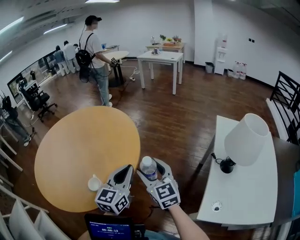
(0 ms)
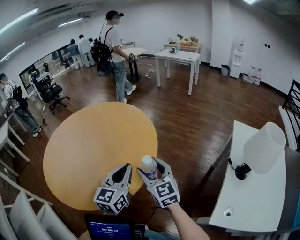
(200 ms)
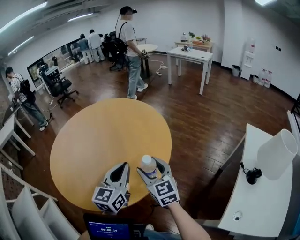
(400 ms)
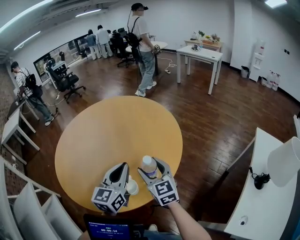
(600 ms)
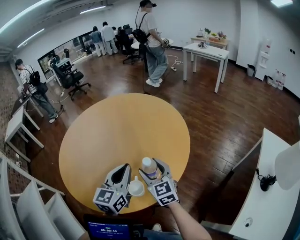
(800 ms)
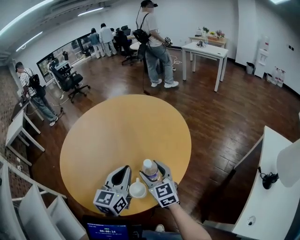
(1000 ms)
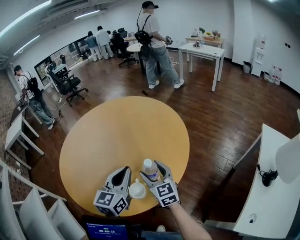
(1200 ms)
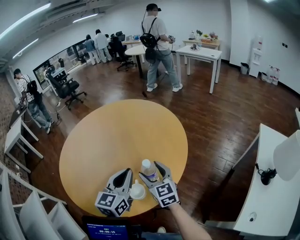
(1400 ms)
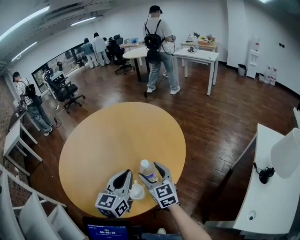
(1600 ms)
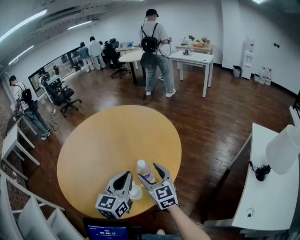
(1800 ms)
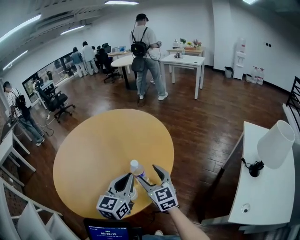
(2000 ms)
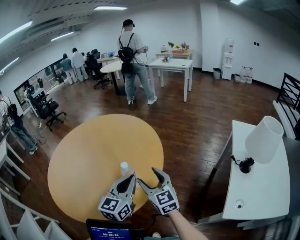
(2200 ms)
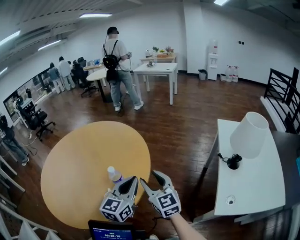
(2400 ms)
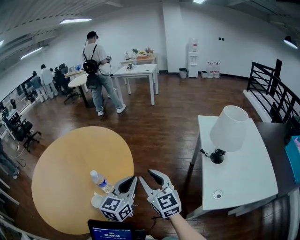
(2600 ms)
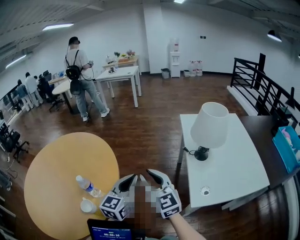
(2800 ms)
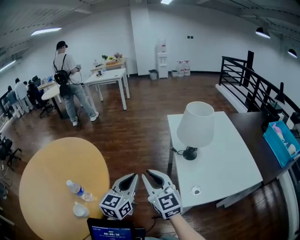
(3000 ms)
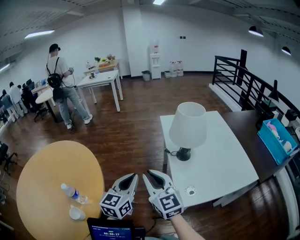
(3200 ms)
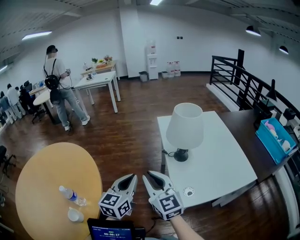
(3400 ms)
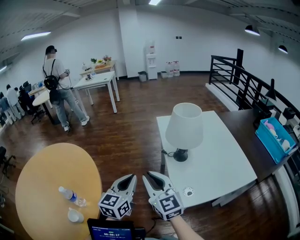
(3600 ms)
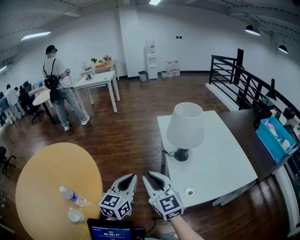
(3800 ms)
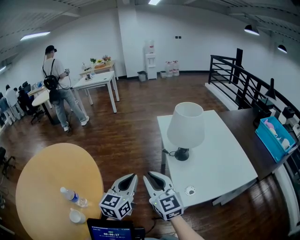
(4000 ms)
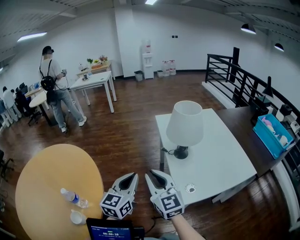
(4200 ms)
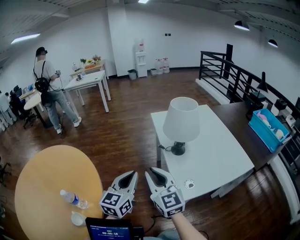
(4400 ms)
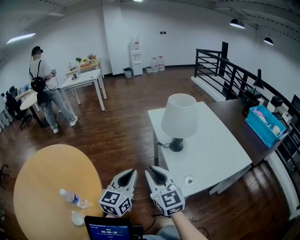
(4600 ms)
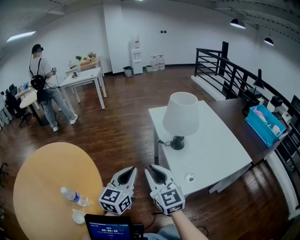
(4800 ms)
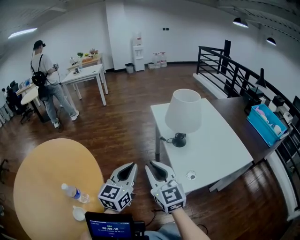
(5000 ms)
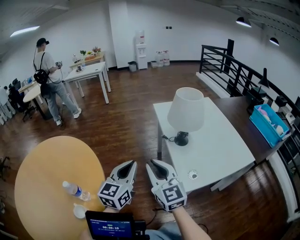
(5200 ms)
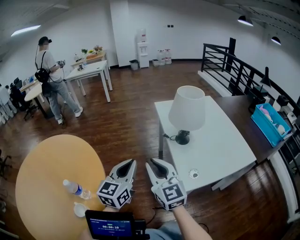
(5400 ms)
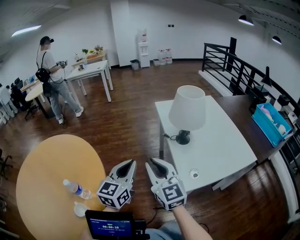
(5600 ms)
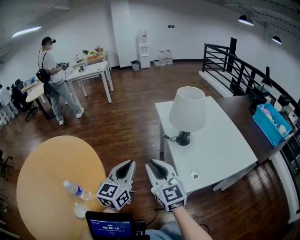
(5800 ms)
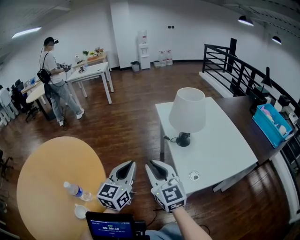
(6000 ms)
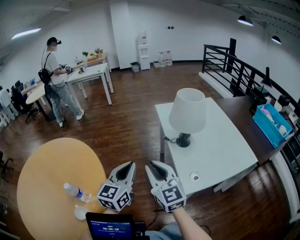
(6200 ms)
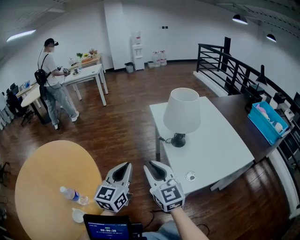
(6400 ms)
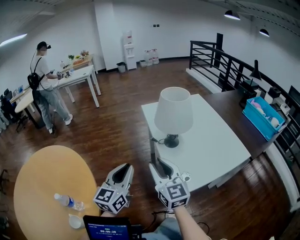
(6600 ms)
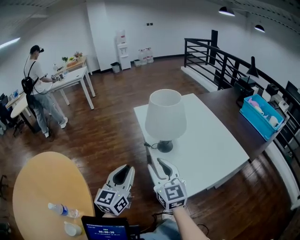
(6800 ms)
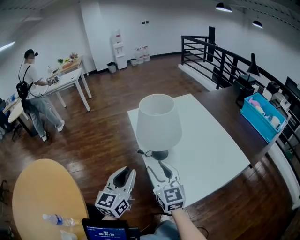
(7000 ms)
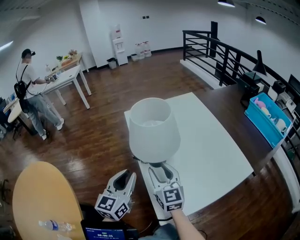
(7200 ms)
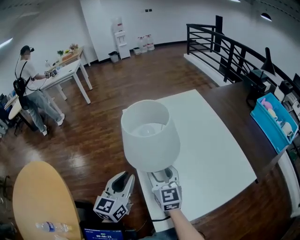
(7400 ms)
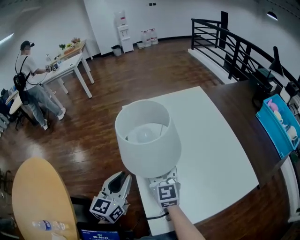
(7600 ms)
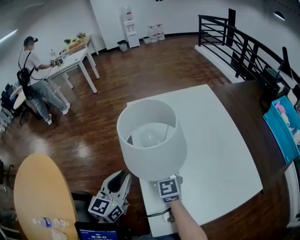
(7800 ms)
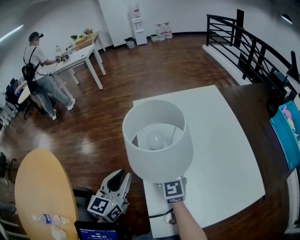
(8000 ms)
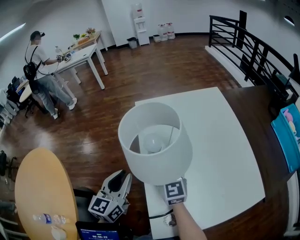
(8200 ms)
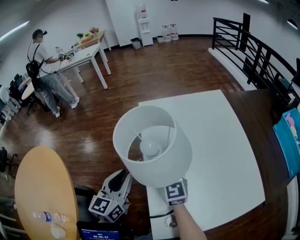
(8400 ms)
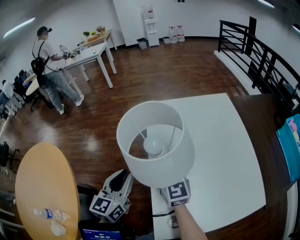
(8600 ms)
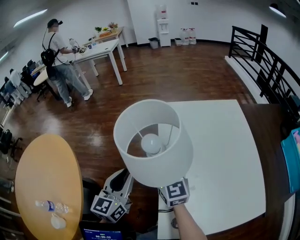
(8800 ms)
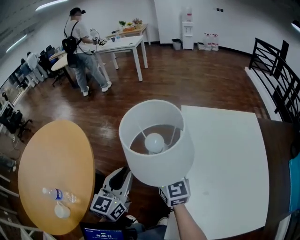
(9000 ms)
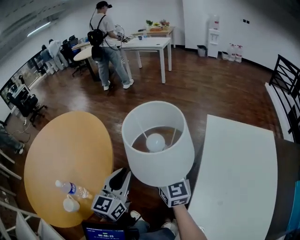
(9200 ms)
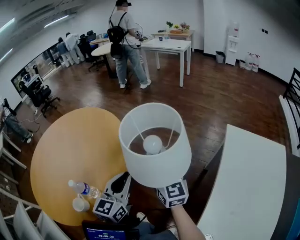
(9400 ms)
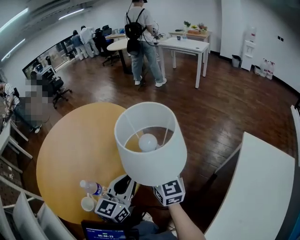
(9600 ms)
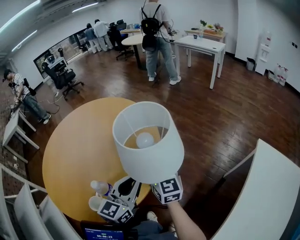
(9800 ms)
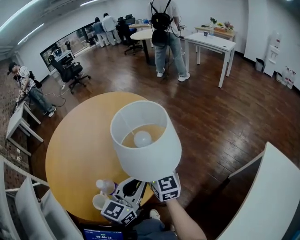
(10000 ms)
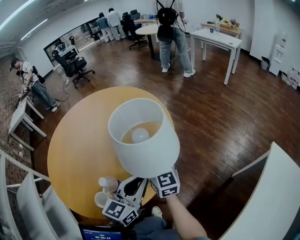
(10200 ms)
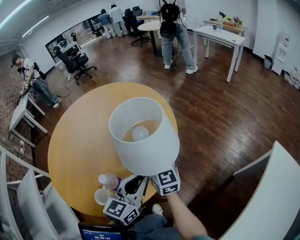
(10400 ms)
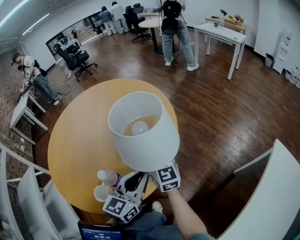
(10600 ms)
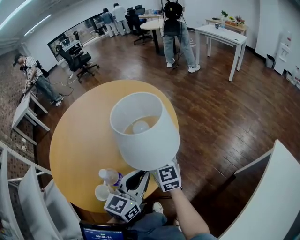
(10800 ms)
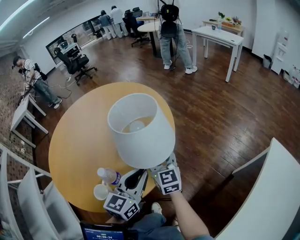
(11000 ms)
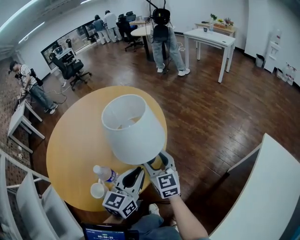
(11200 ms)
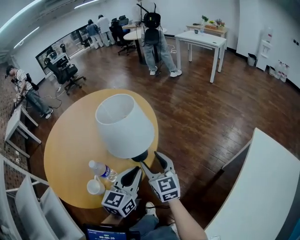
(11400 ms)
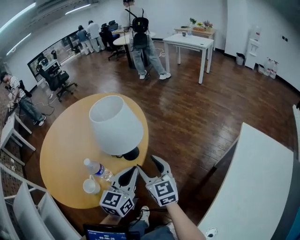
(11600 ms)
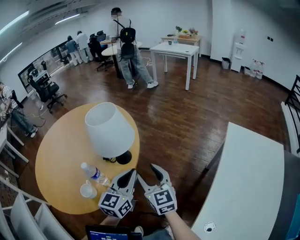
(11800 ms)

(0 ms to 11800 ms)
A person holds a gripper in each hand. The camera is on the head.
0 ms - 1400 ms: The left gripper goes about 25 cm to the left, while the right gripper is displaced to the left and forward by approximately 25 cm.
1400 ms - 3000 ms: The right gripper ends up some 40 cm from where it was, changes its angle by about 40 degrees, and closes up, while the left gripper moves approximately 40 cm, and swivels roughly 40 degrees.
3000 ms - 6000 ms: The grippers make only small movements.
6000 ms - 7400 ms: Both grippers move forward, to the right and downward, approximately 30 cm. The left gripper opens. The right gripper opens its fingers.
7400 ms - 8800 ms: The left gripper is displaced to the left by approximately 10 cm; the right gripper goes about 10 cm to the left and forward.
8800 ms - 10400 ms: Both grippers are carried some 50 cm. The left gripper swivels approximately 40 degrees. The right gripper rotates roughly 50 degrees.
10400 ms - 11800 ms: The right gripper travels backward and to the right by approximately 25 cm. The left gripper travels to the right, backward and upward by approximately 15 cm.

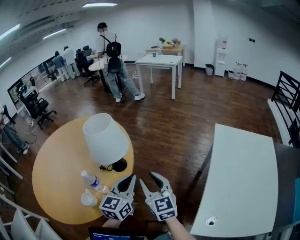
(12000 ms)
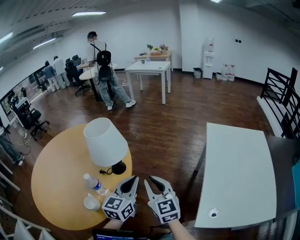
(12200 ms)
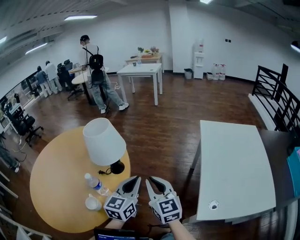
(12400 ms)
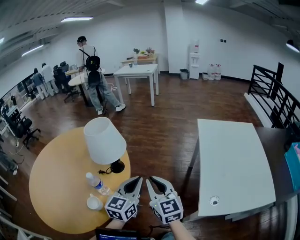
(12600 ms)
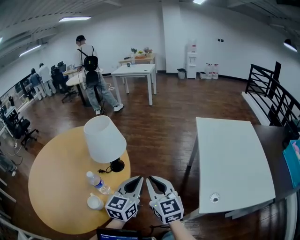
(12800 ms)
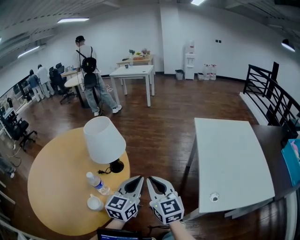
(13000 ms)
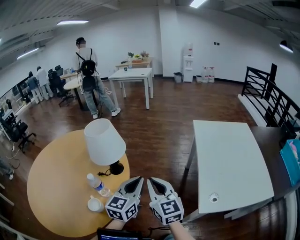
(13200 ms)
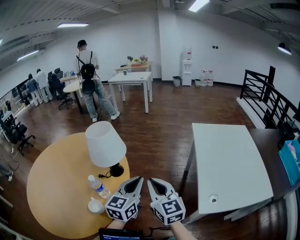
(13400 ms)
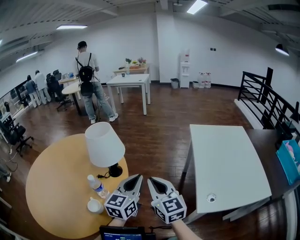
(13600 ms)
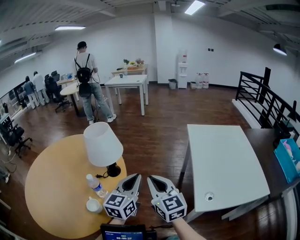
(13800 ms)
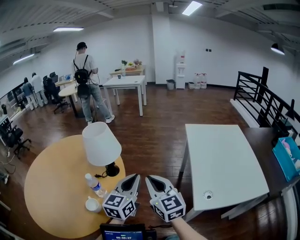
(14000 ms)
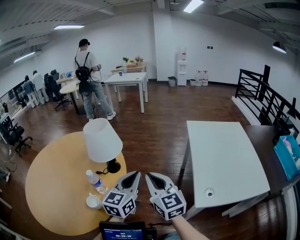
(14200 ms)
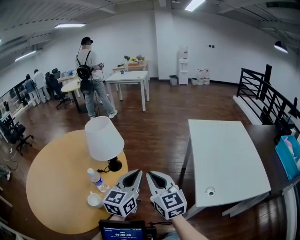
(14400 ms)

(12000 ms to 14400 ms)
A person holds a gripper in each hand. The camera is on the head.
12000 ms - 13200 ms: The left gripper moves backward, about 10 cm, and changes its angle by some 20 degrees. Meanwhile the right gripper goes roughly 10 cm backward and upward, and closes its fingers.
13200 ms - 14400 ms: The grippers stay close to where they were, moving slightly.

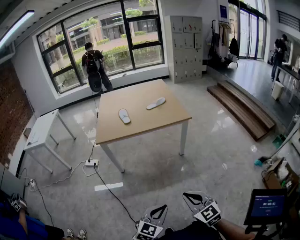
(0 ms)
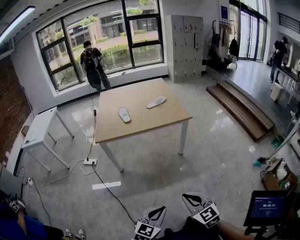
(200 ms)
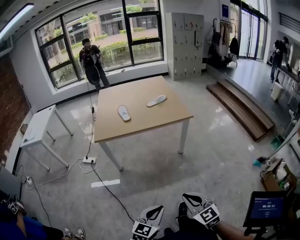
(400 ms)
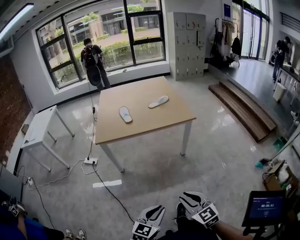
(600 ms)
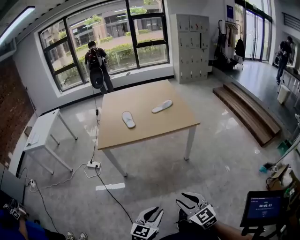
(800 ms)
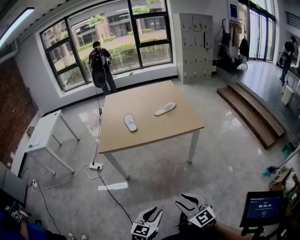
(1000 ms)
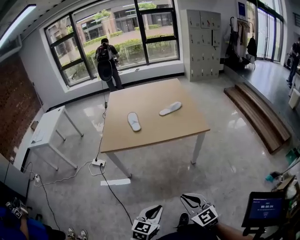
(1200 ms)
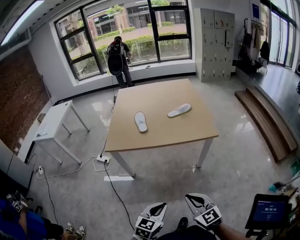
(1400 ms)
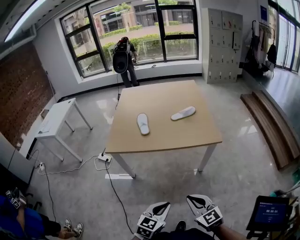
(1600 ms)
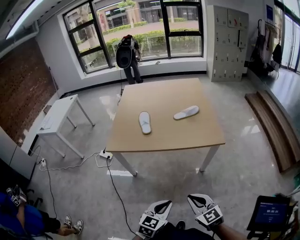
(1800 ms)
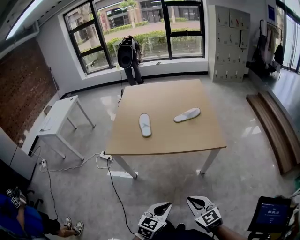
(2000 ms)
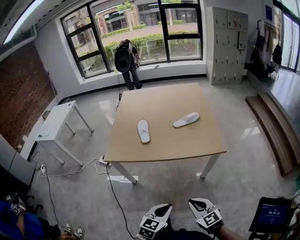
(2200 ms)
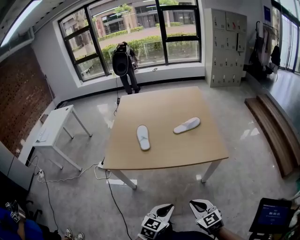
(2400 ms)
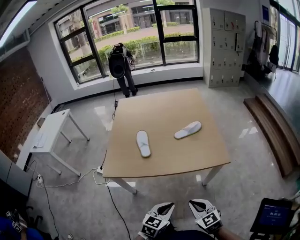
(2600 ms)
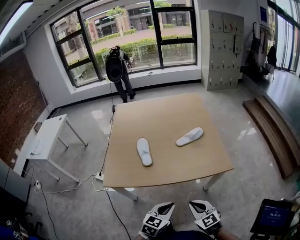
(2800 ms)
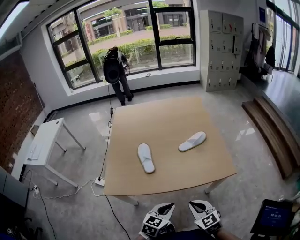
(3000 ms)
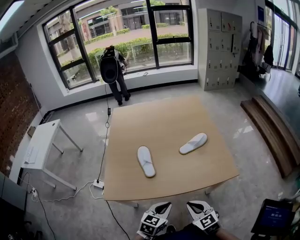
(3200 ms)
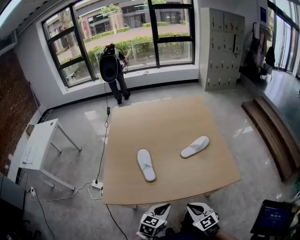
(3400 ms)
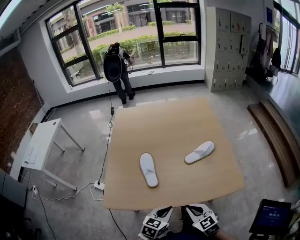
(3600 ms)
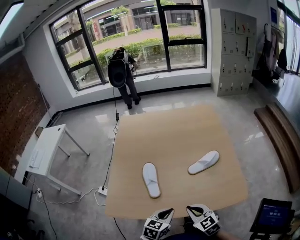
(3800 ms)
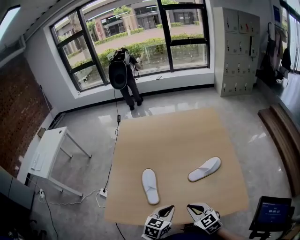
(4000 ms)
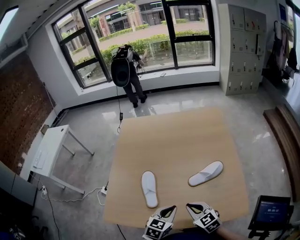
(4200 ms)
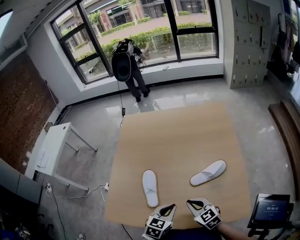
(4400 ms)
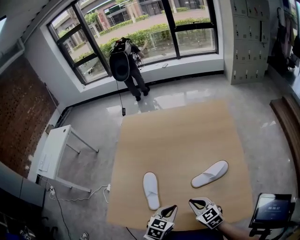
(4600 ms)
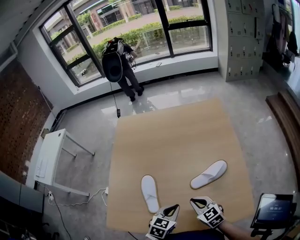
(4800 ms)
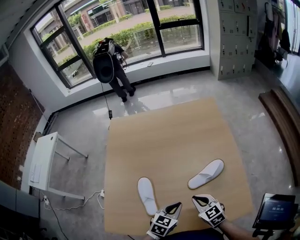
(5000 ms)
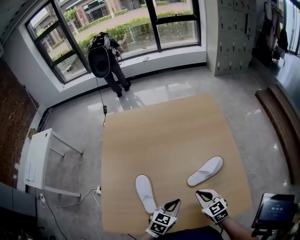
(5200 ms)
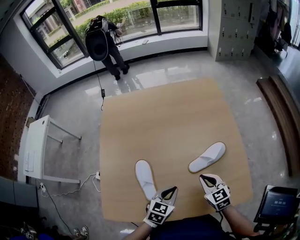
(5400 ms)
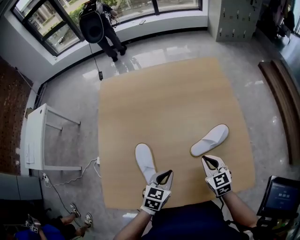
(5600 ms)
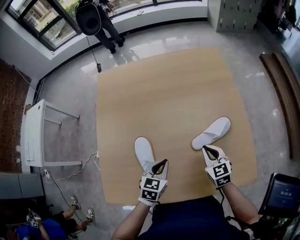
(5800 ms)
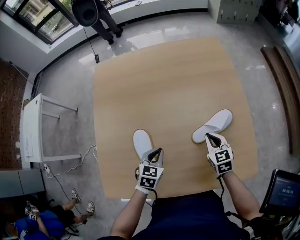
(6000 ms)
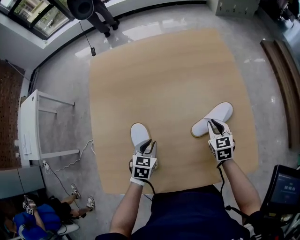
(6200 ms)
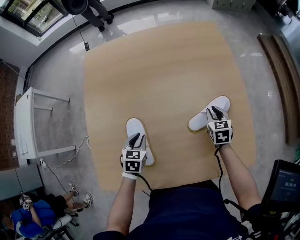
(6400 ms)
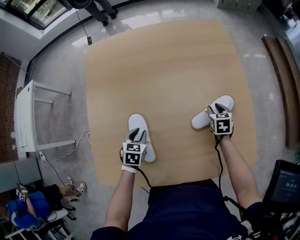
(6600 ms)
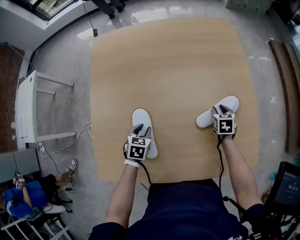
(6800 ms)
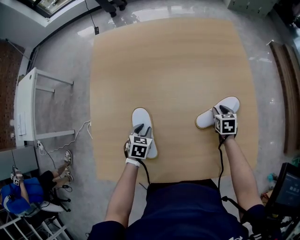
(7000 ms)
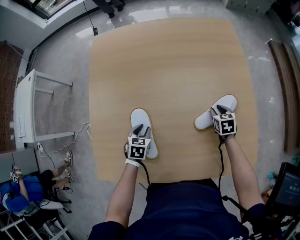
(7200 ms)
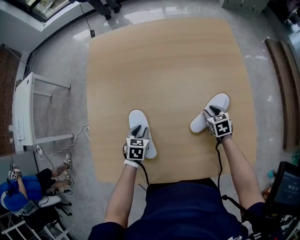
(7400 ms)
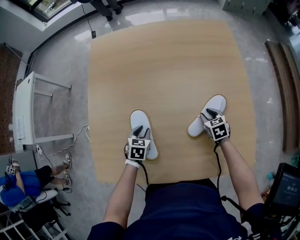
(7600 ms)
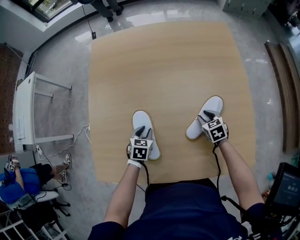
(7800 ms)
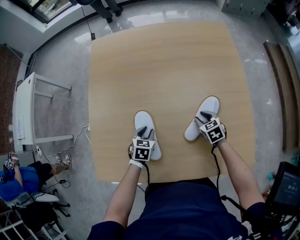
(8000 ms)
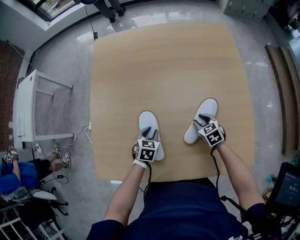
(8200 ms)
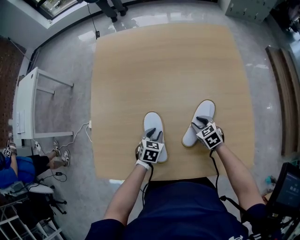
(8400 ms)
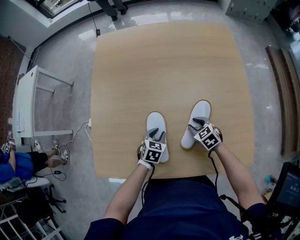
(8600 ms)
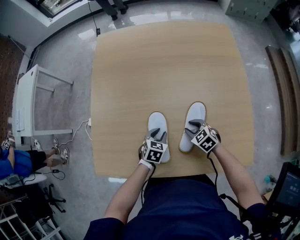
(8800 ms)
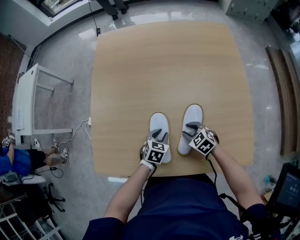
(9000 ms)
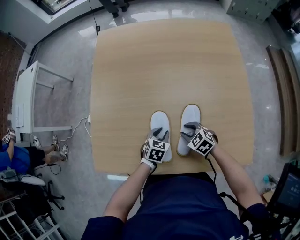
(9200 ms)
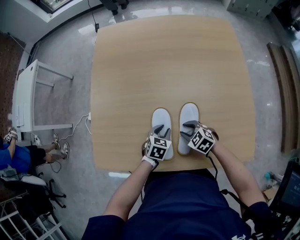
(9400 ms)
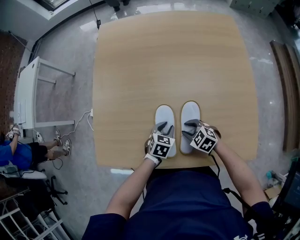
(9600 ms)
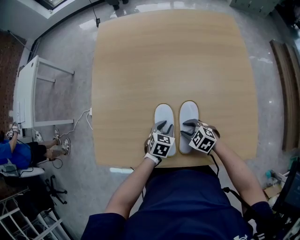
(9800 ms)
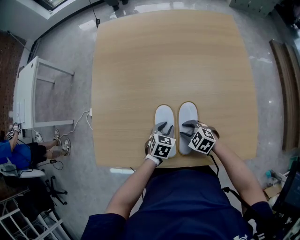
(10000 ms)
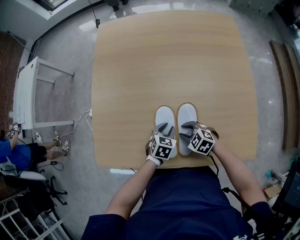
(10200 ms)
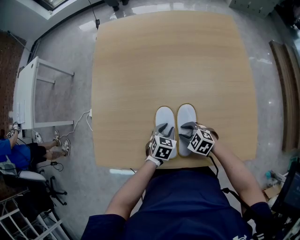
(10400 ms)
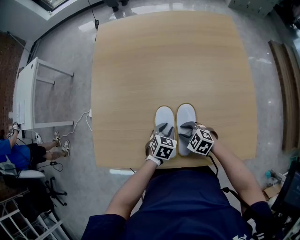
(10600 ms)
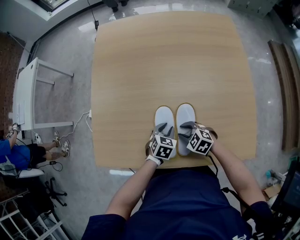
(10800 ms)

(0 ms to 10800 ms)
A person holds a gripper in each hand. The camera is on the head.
0 ms - 1600 ms: Both grippers move forward, roughly 25 cm. The left gripper opens, then closes once more, while the right gripper opens, then closes once more.
1600 ms - 3000 ms: The grippers both shift forward by roughly 25 cm.
3000 ms - 4600 ms: The two grippers go roughly 25 cm forward.
4600 ms - 6200 ms: The left gripper shifts roughly 20 cm to the left, forward and downward. Meanwhile the right gripper moves forward, to the right and downward, approximately 20 cm, and turns by about 40 degrees.
6200 ms - 7800 ms: The two grippers go approximately 10 cm downward. The right gripper changes its angle by some 20 degrees, and opens its fingers.
7800 ms - 9200 ms: The right gripper is displaced to the left and backward by about 15 cm, and swivels approximately 30 degrees. Meanwhile the left gripper is displaced to the right and backward by approximately 10 cm.
9200 ms - 10800 ms: There are only small adjustments of the grippers.
